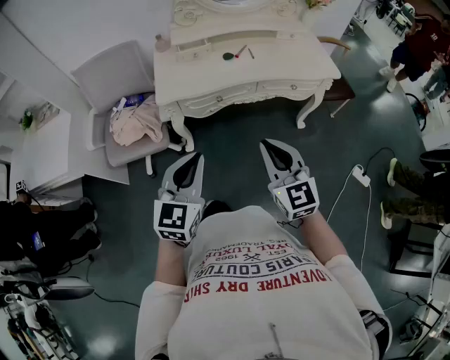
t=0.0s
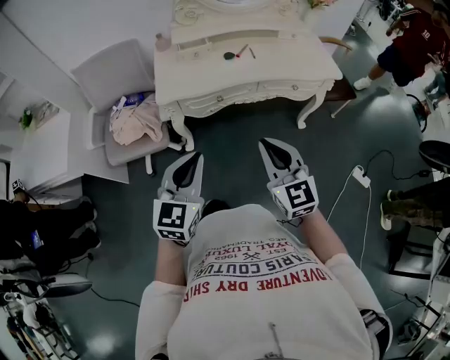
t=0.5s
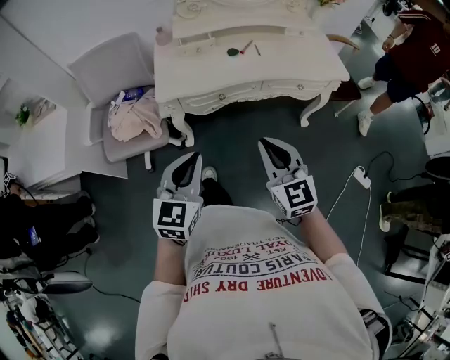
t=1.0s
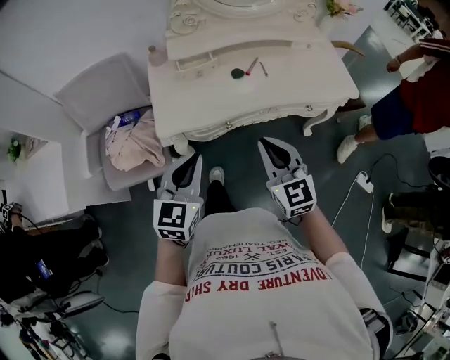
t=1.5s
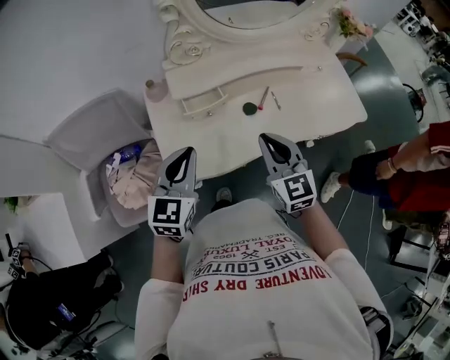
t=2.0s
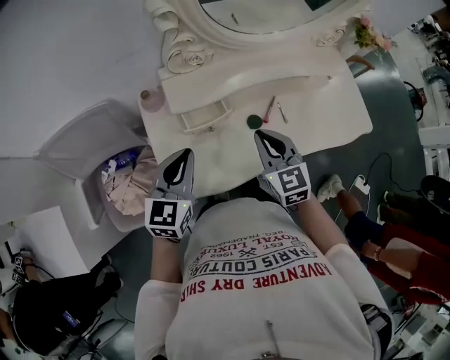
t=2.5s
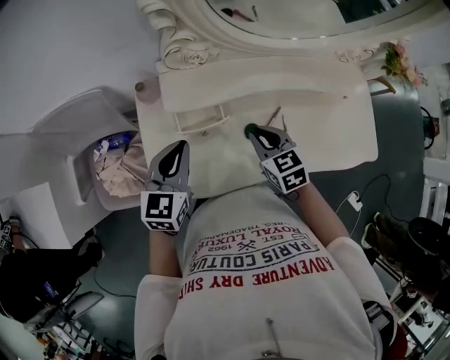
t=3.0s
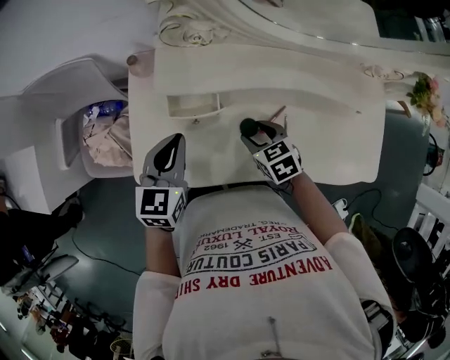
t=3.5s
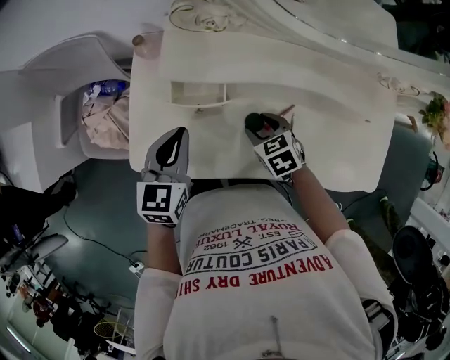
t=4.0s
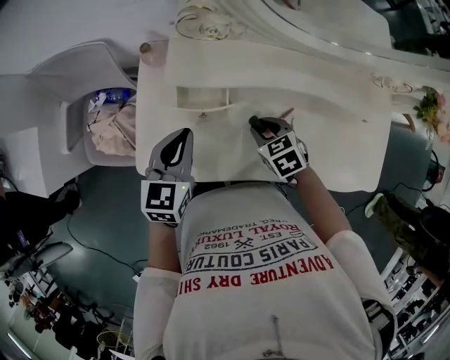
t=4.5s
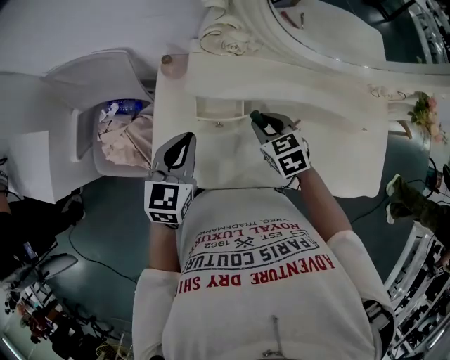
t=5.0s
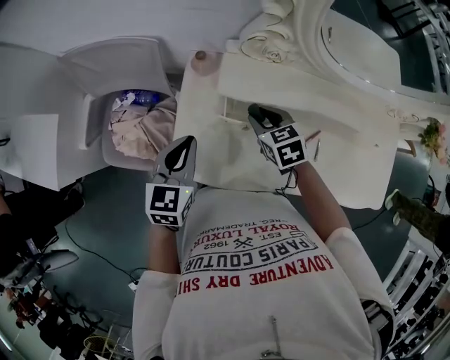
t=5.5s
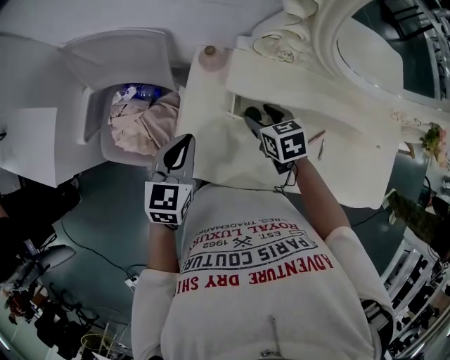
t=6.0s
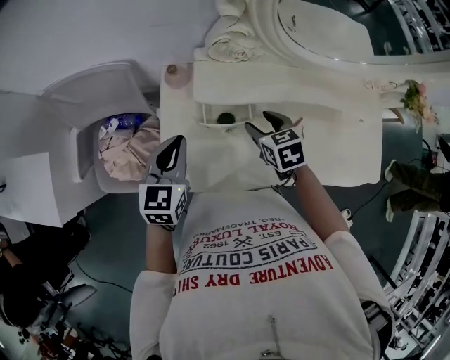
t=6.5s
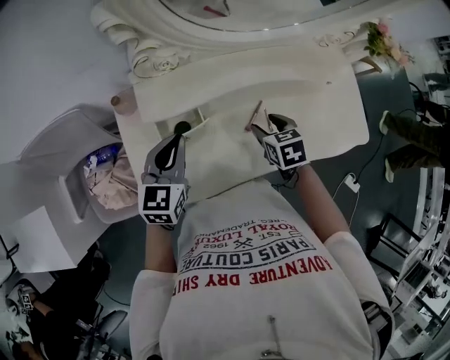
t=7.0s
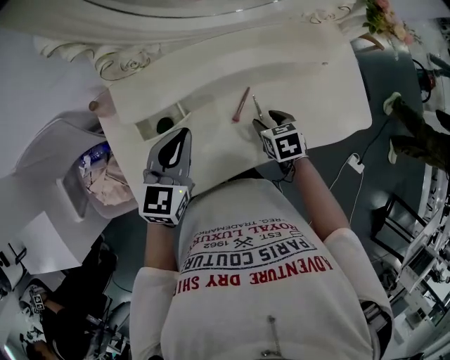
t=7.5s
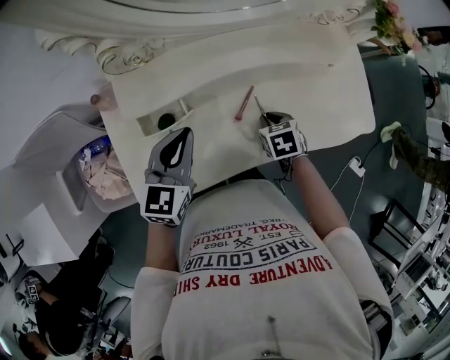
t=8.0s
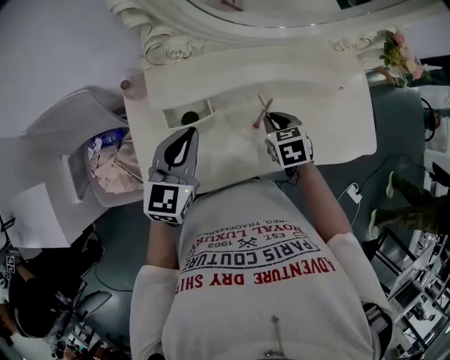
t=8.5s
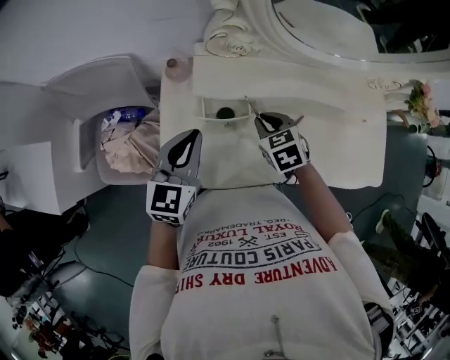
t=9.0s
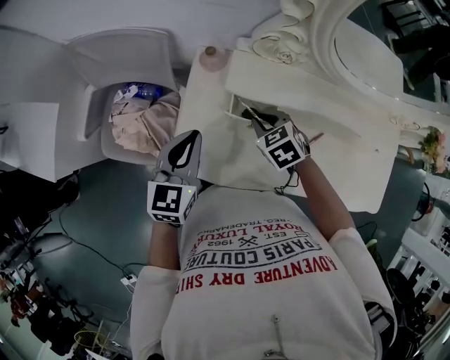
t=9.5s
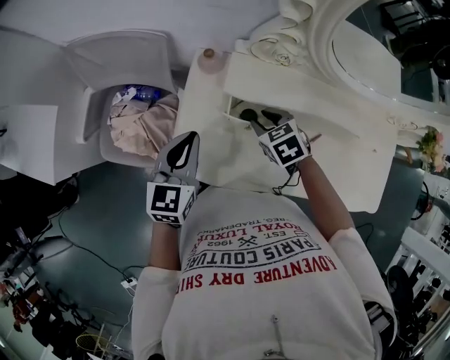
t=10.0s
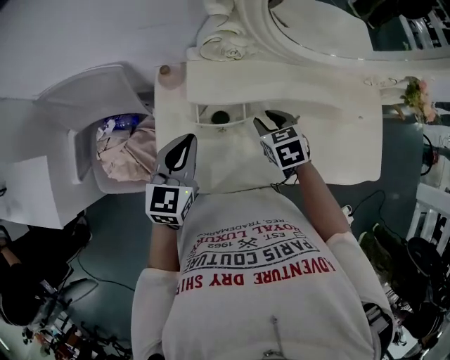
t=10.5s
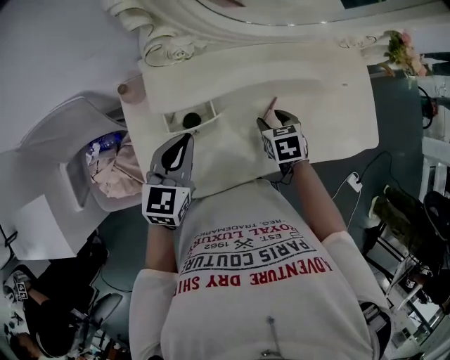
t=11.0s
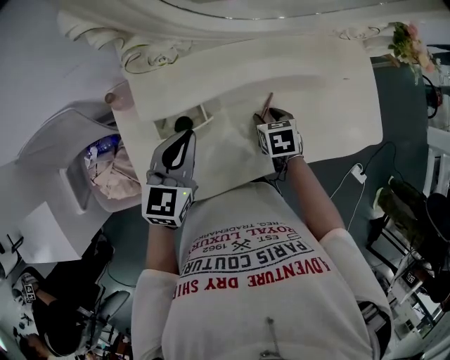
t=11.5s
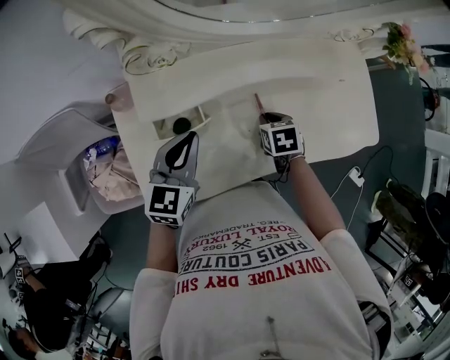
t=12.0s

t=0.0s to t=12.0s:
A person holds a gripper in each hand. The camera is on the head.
t=0.0s to t=2.0s: Both grippers are carried forward, some 40 cm.
t=2.0s to t=4.0s: The right gripper travels downward by roughly 25 cm, tilts its fingers approximately 40 degrees downward, and opens up, while the left gripper ends up about 15 cm from where it was, and changes its angle by approximately 30 degrees.
t=4.0s to t=6.0s: The left gripper heads to the left, covering approximately 15 cm; the right gripper heads to the left, forward and upward, covering some 20 cm, and closes and opens again.
t=6.0s to t=8.0s: The right gripper changes place by roughly 30 cm, turns by some 30 degrees, and closes its fingers; the left gripper shifts by roughly 25 cm, and changes its angle by some 30 degrees.
t=8.0s to t=10.0s: The right gripper moves approximately 30 cm, and rotates about 40 degrees. The left gripper moves some 20 cm, and changes its angle by some 30 degrees.
t=10.0s to t=12.0s: The right gripper ends up roughly 25 cm from where it was, and twists some 40 degrees clockwise, seen from behind. Meanwhile the left gripper shifts by about 20 cm, and rotates about 30 degrees.

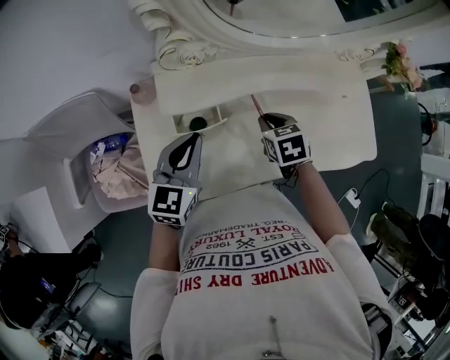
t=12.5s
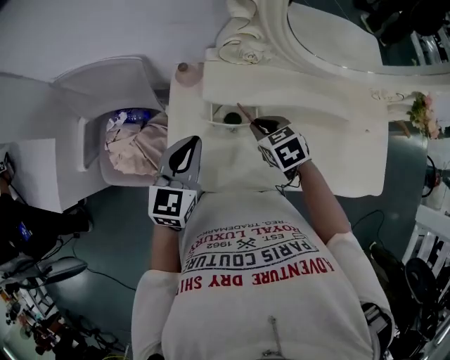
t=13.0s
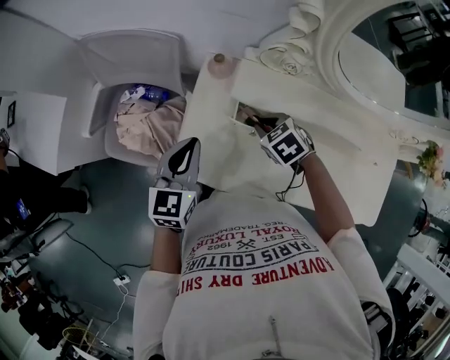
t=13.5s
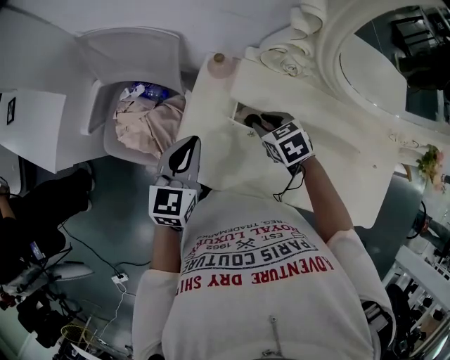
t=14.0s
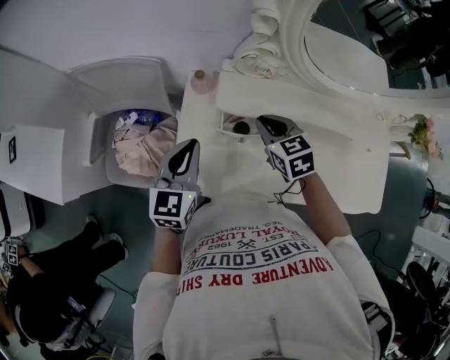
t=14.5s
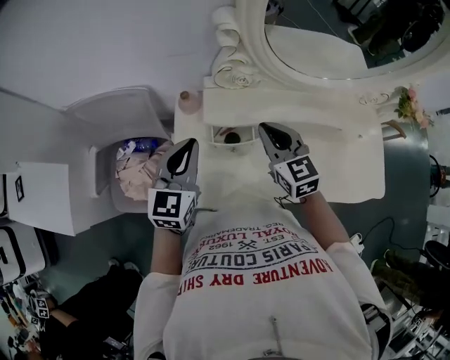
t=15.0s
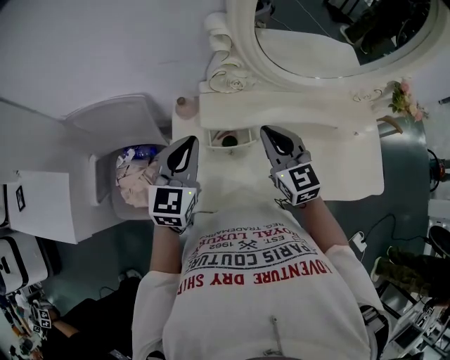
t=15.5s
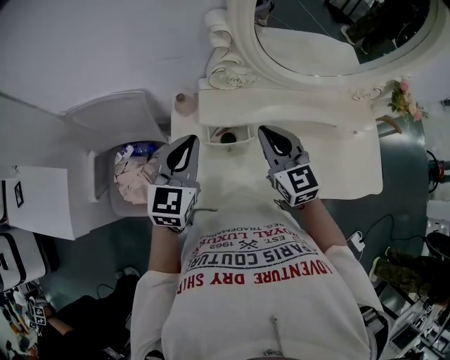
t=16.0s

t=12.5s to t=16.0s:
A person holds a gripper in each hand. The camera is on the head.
t=12.5s to t=14.5s: The left gripper shifts by about 15 cm, and swivels roughly 20 degrees; the right gripper moves roughly 20 cm, and rotates approximately 30 degrees.
t=14.5s to t=16.0s: The right gripper moves upward and backward, roughly 10 cm, and changes its angle by some 30 degrees. Meanwhile the left gripper travels upward by approximately 5 cm.

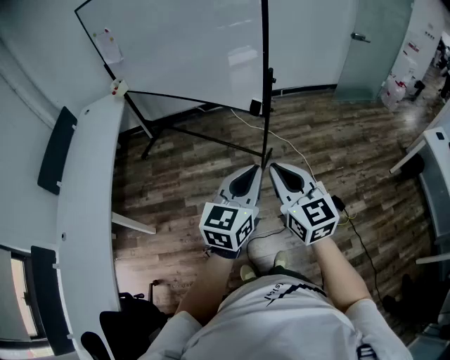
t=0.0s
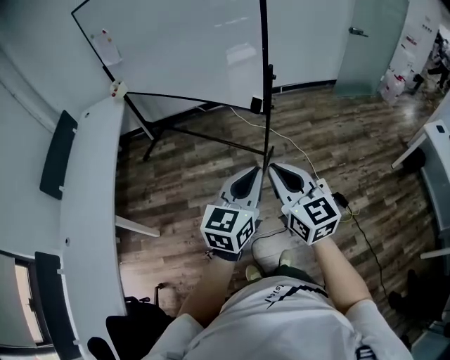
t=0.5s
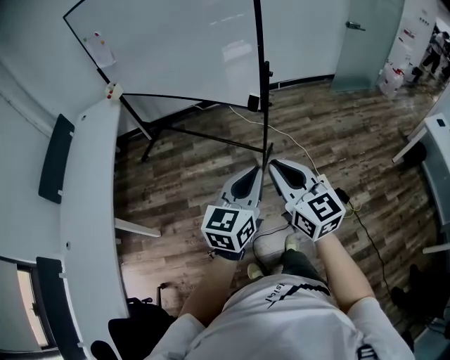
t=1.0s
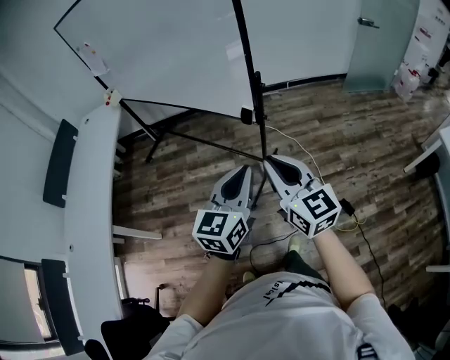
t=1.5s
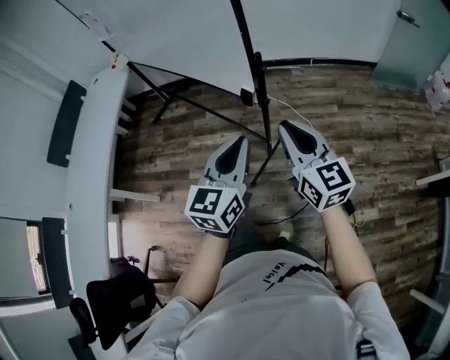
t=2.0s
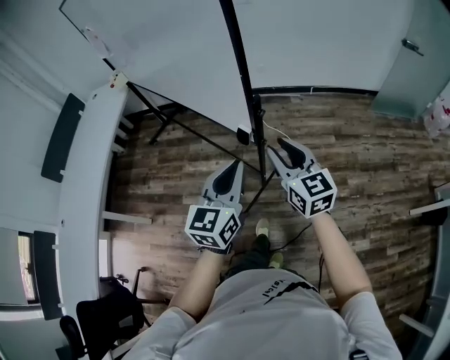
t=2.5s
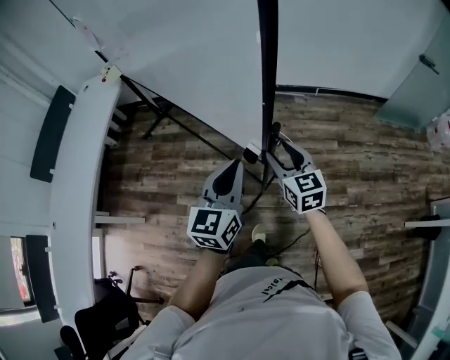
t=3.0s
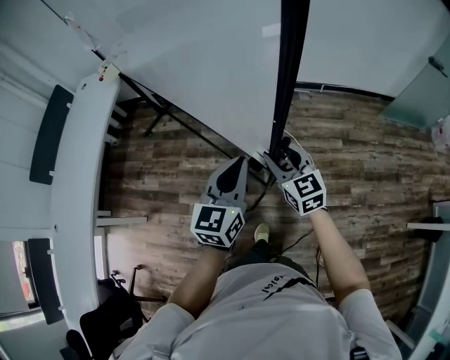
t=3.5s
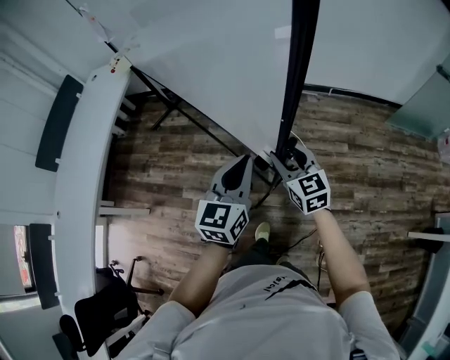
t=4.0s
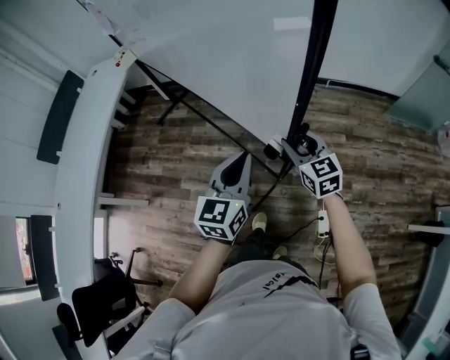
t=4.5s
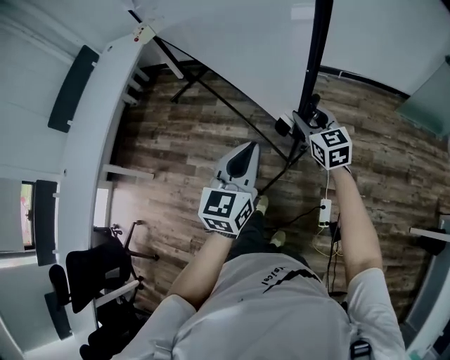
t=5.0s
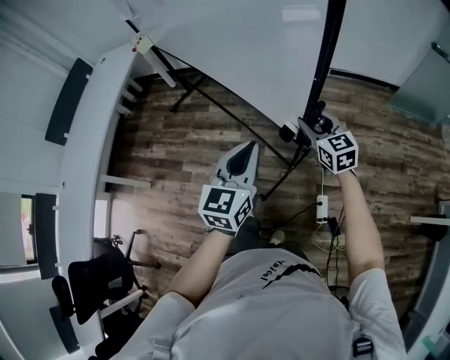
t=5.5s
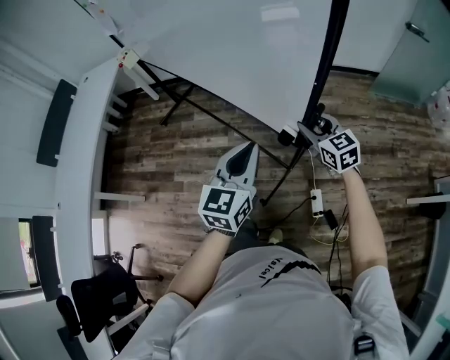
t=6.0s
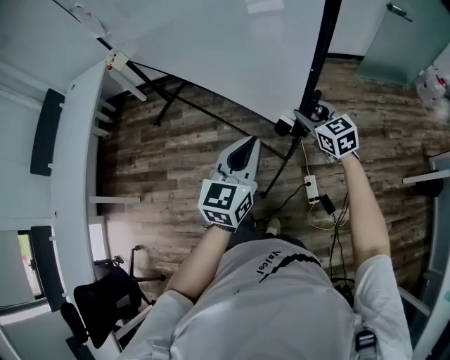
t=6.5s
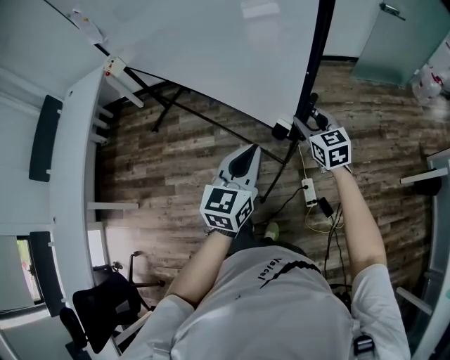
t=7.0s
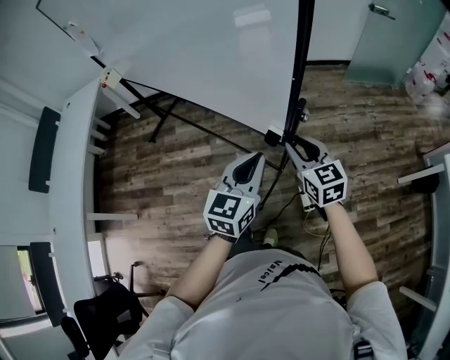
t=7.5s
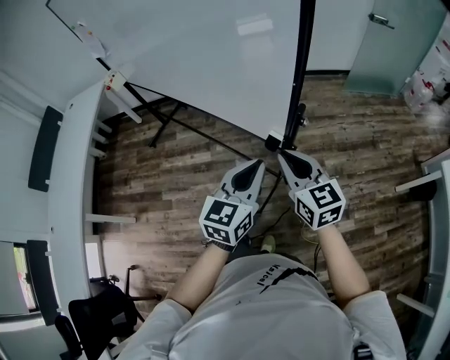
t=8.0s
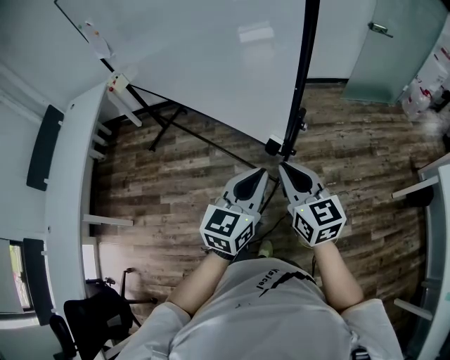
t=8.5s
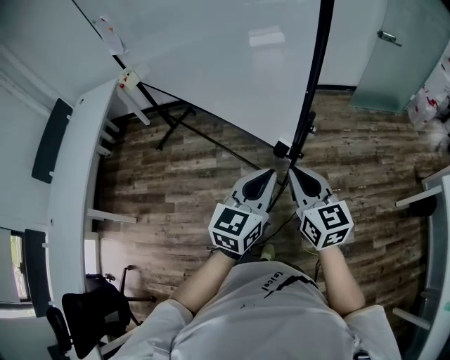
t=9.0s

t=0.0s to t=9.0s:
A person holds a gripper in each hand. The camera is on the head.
t=0.0s to t=2.0s: Both grippers travel together forward and to the right, about 25 cm.
t=2.0s to t=4.5s: The right gripper heads forward and downward, covering some 30 cm, rotates approximately 20 degrees, and opens up. The left gripper moves forward, some 20 cm.
t=4.5s to t=7.0s: The grippers both shift to the right and backward by about 25 cm.
t=7.0s to t=9.0s: The right gripper travels backward and upward by roughly 20 cm, and closes, while the left gripper shifts approximately 5 cm backward.

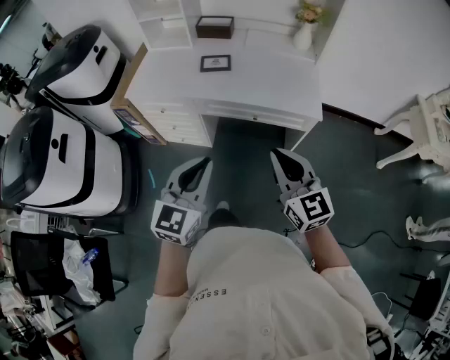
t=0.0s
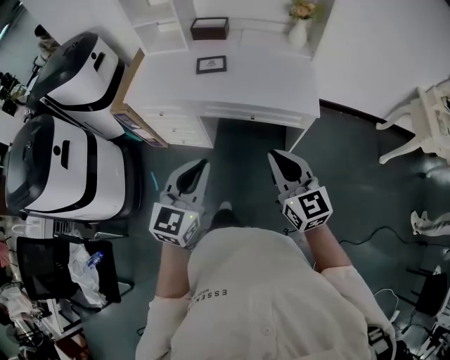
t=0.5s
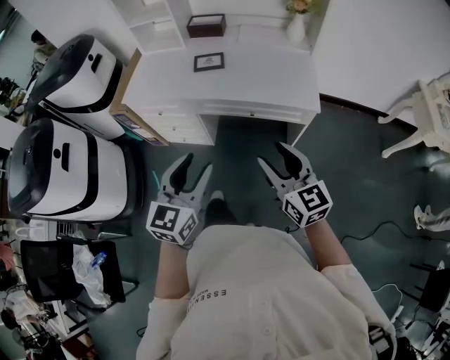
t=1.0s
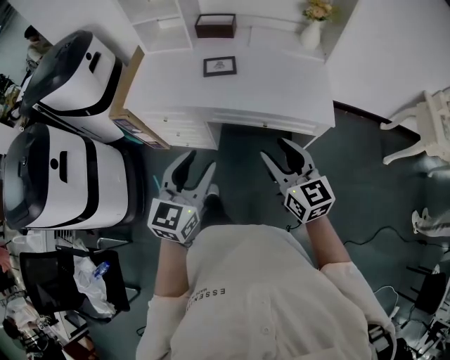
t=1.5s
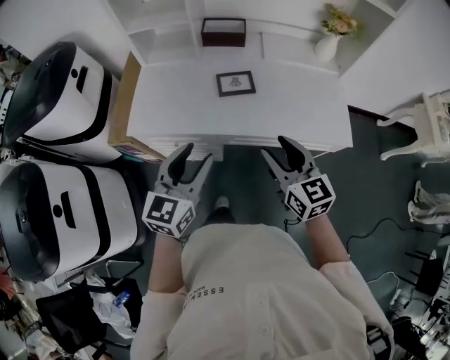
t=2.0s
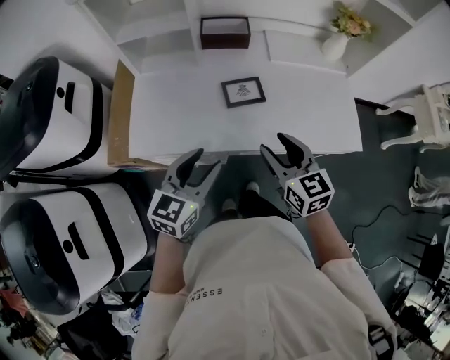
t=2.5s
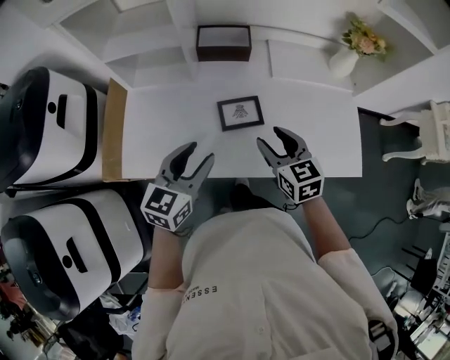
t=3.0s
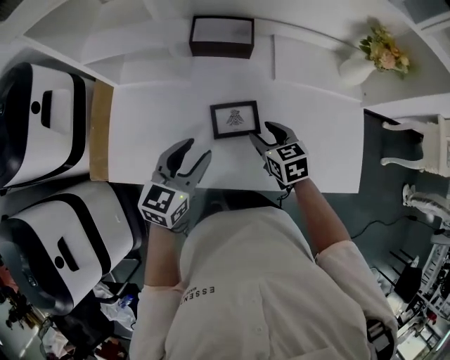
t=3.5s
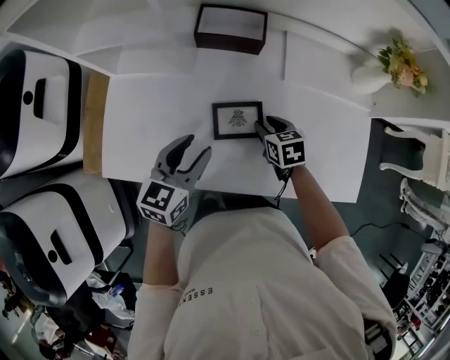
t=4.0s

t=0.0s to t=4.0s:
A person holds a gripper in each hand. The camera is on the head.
t=0.0s to t=2.0s: The grippers both shift forward and to the left by approximately 30 cm. The right gripper opens its fingers, while the left gripper opens up.
t=2.0s to t=4.0s: Both grippers move forward and downward, about 35 cm. The right gripper tips its fingers downward by about 40 degrees.
